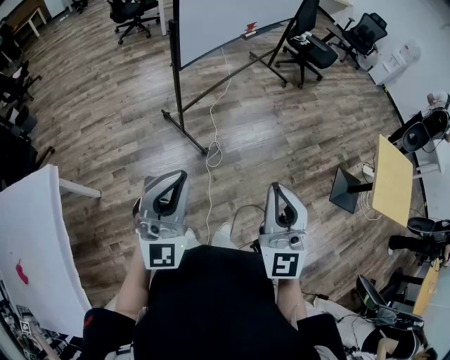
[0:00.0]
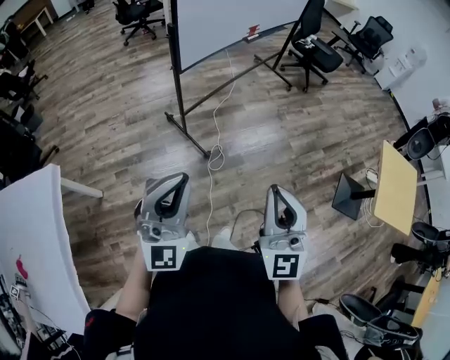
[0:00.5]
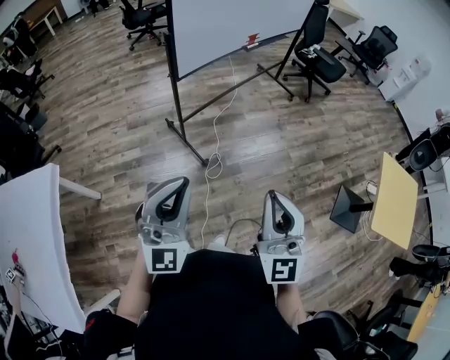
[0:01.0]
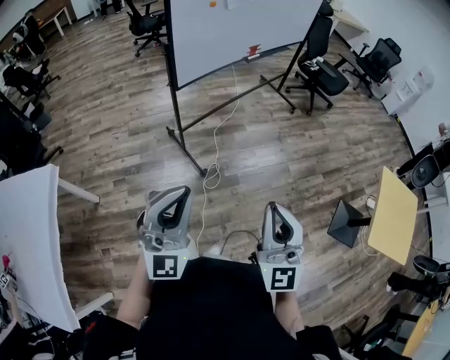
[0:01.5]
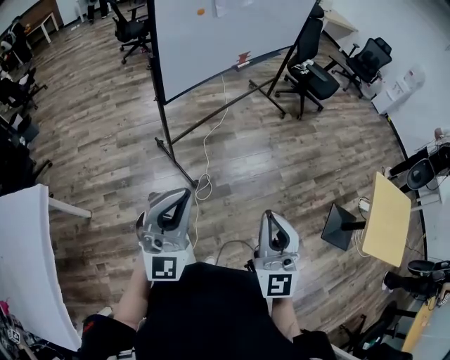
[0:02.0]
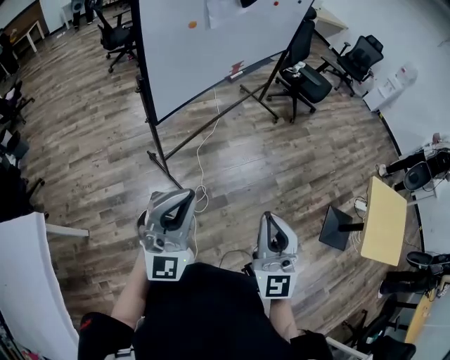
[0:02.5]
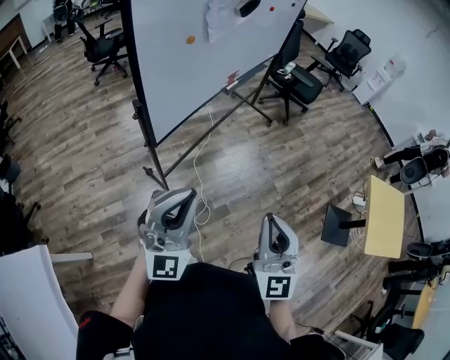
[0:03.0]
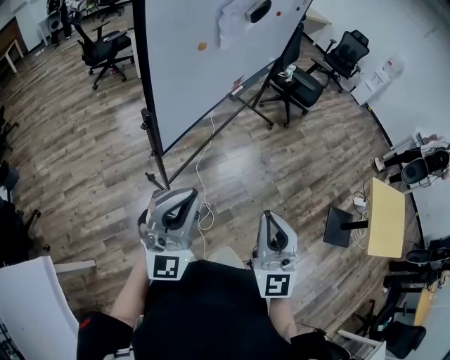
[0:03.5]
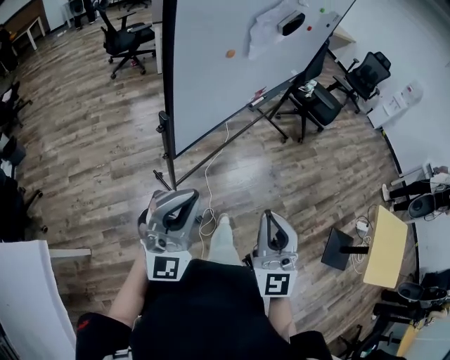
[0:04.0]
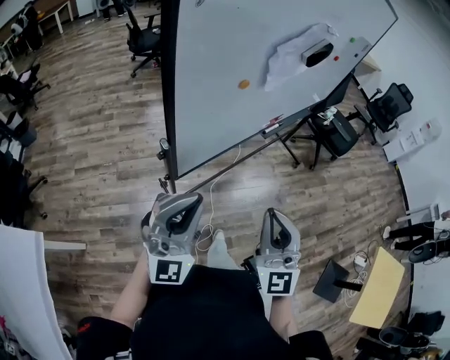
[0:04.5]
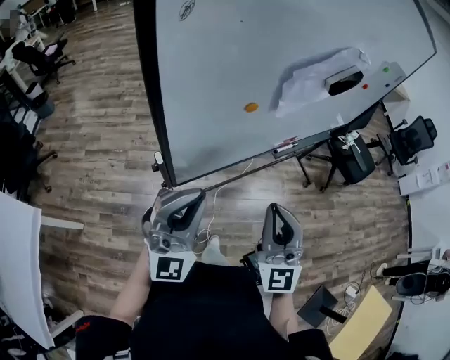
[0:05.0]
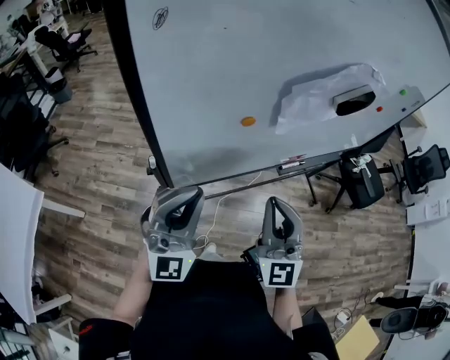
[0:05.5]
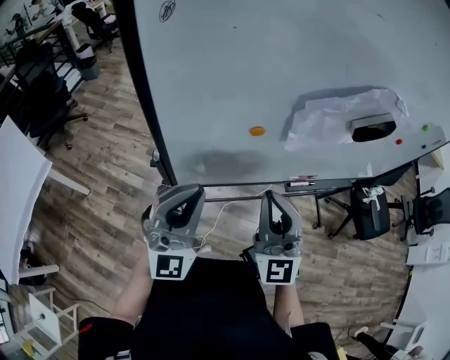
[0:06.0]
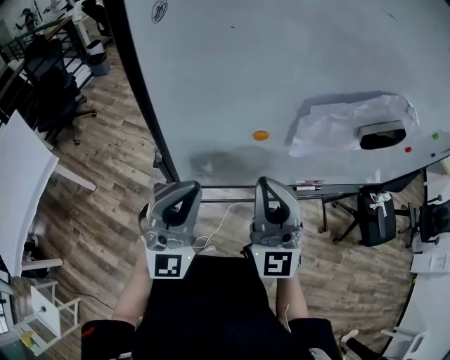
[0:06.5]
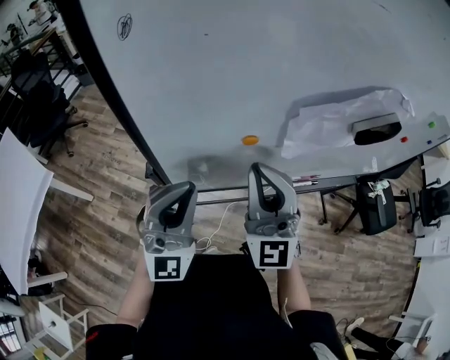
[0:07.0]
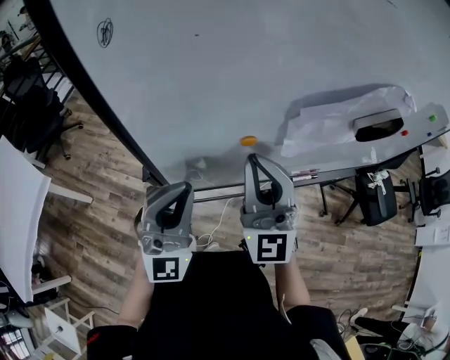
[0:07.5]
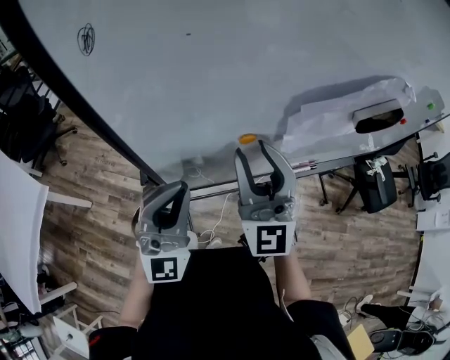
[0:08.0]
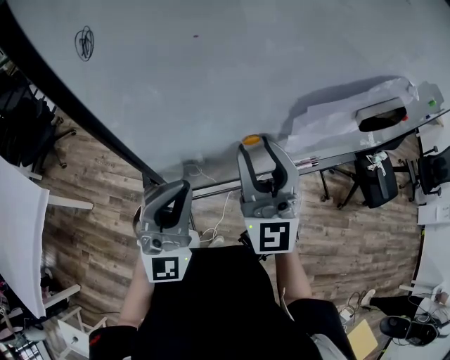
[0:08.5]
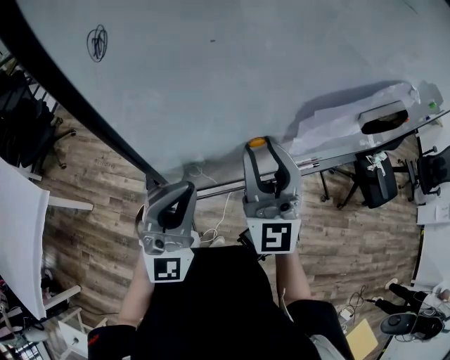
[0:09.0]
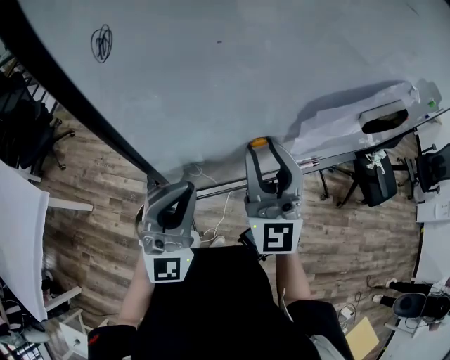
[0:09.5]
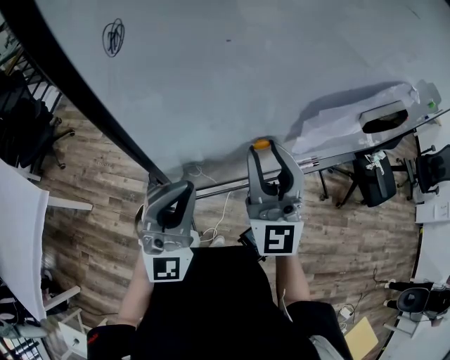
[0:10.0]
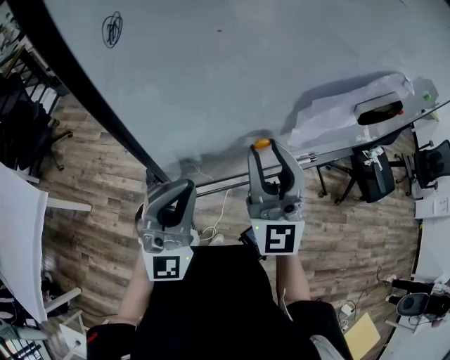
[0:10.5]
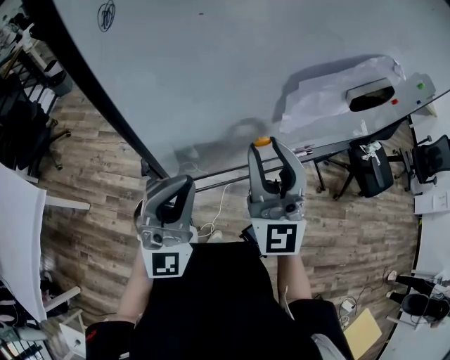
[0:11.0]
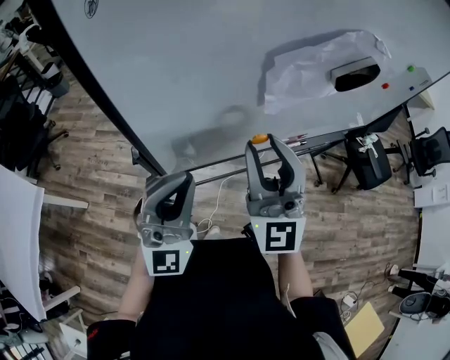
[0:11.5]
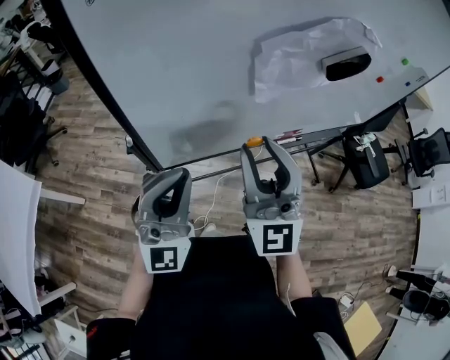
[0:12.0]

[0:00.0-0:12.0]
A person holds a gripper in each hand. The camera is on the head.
0:00.0 to 0:02.0: The two grippers go approximately 15 cm to the right and forward.
0:02.0 to 0:04.0: Both grippers move forward and to the left, approximately 30 cm.
0:04.0 to 0:06.0: The left gripper shifts by about 25 cm, and turns by about 40 degrees, while the right gripper ends up some 35 cm from where it was, and turns by some 40 degrees.
0:06.0 to 0:08.0: The left gripper ends up approximately 5 cm from where it was. Meanwhile the right gripper is displaced forward by approximately 10 cm, and opens.
0:08.0 to 0:10.0: The grippers stay close to where they were, moving slightly.
0:10.0 to 0:12.0: The two grippers go roughly 10 cm backward and to the right.

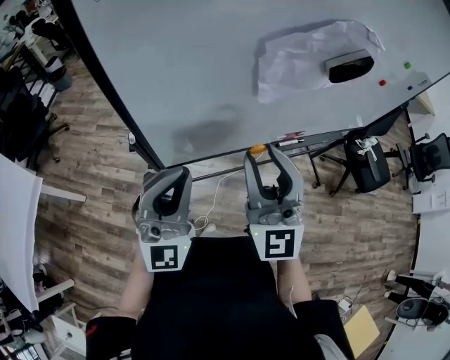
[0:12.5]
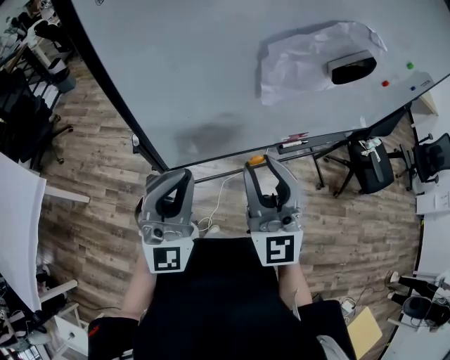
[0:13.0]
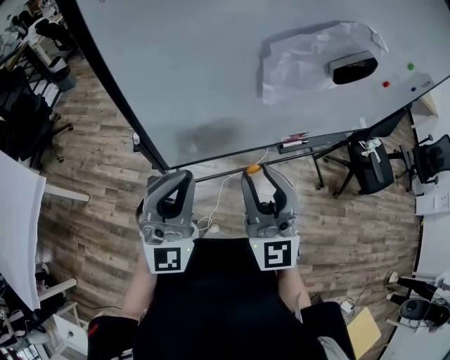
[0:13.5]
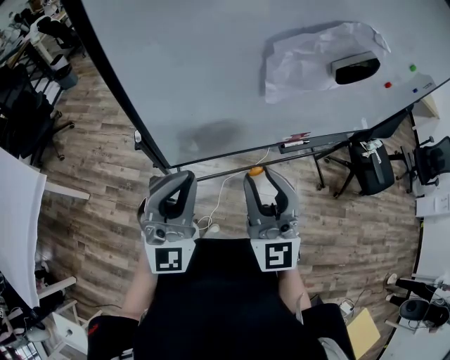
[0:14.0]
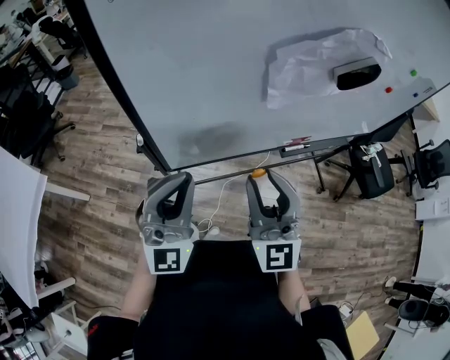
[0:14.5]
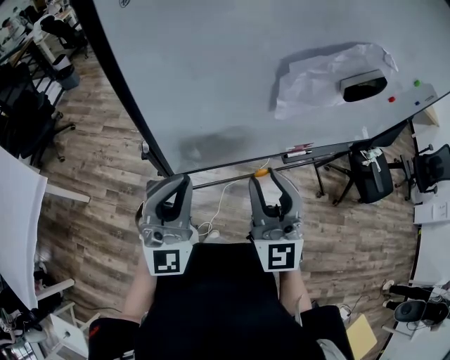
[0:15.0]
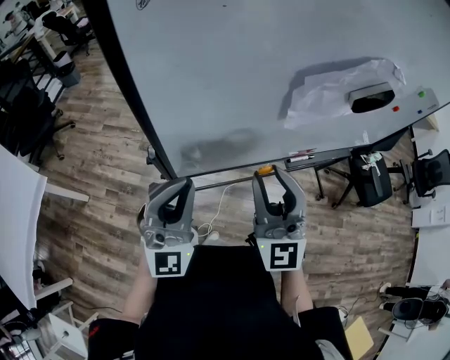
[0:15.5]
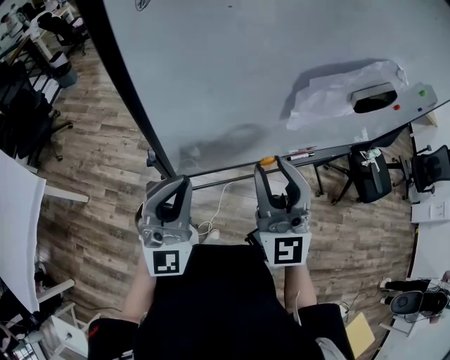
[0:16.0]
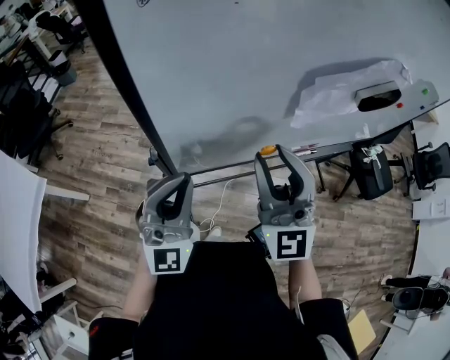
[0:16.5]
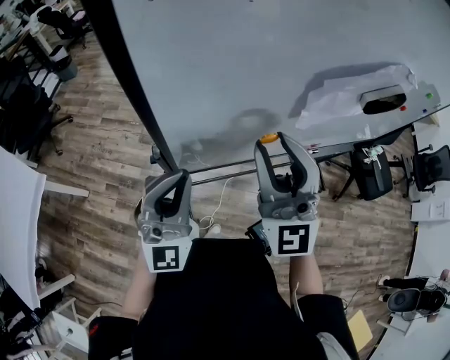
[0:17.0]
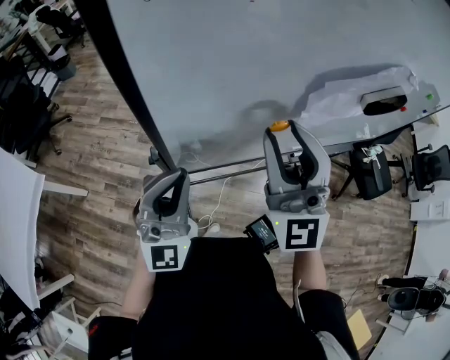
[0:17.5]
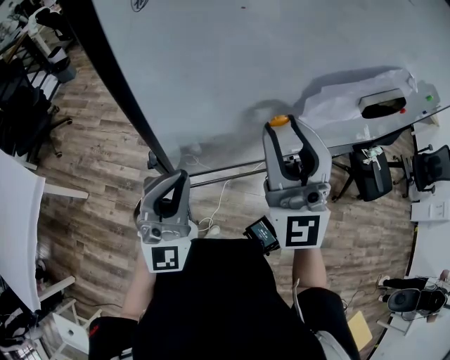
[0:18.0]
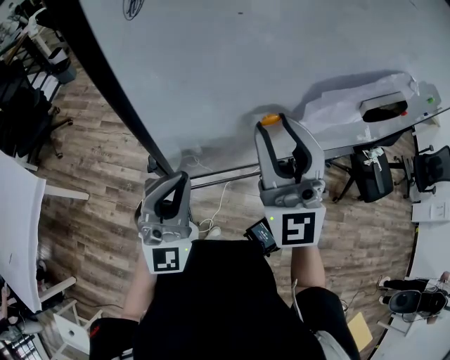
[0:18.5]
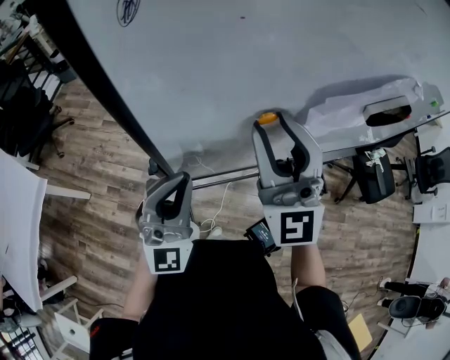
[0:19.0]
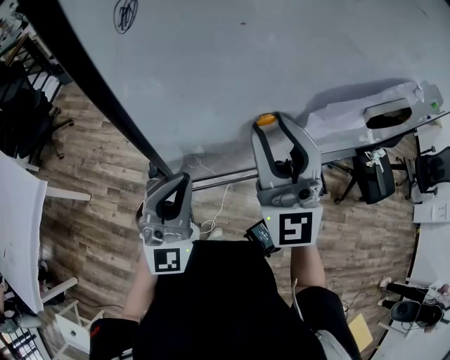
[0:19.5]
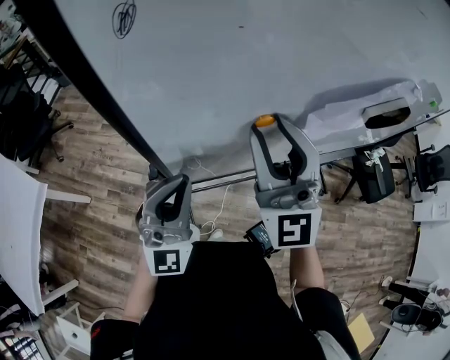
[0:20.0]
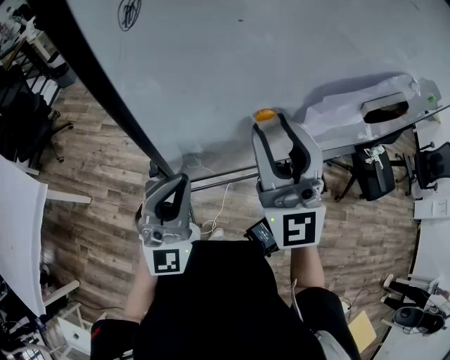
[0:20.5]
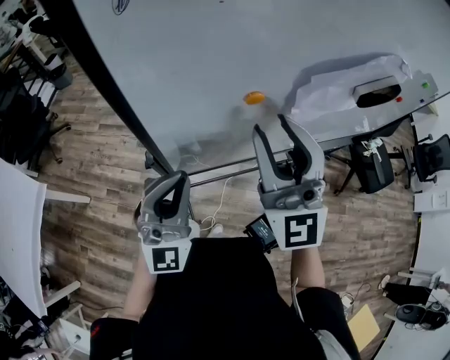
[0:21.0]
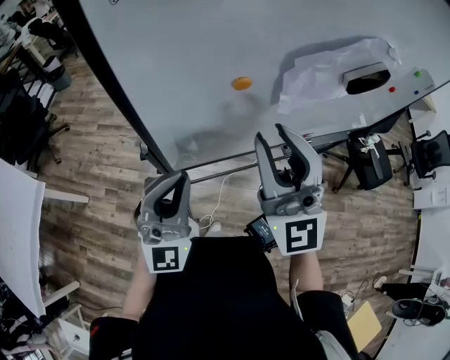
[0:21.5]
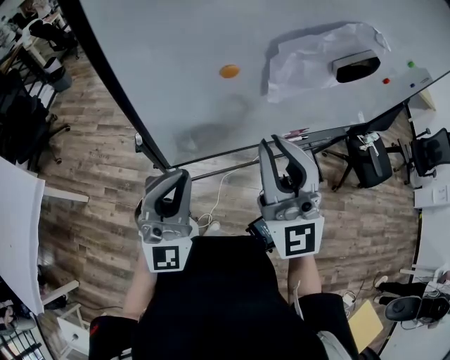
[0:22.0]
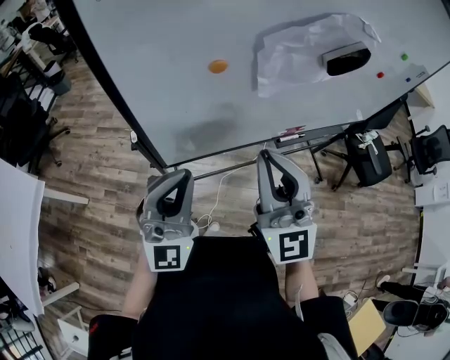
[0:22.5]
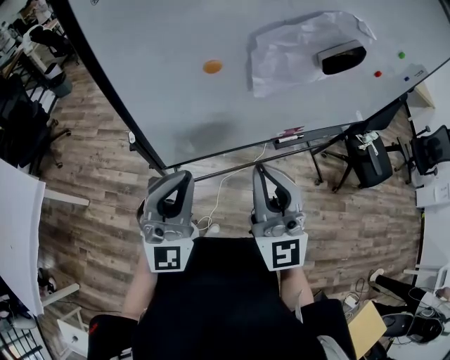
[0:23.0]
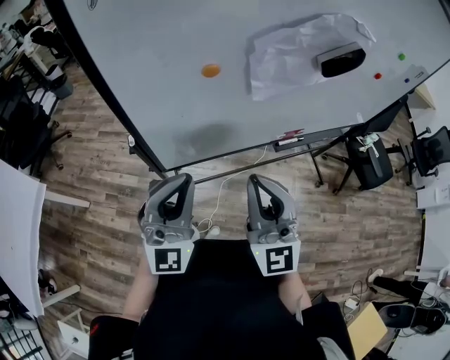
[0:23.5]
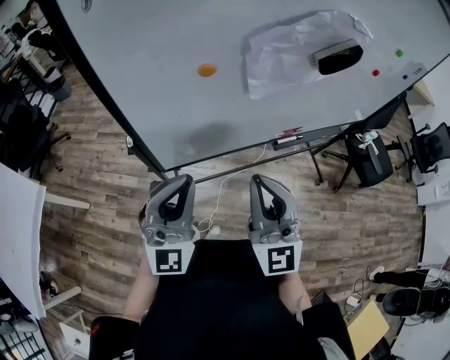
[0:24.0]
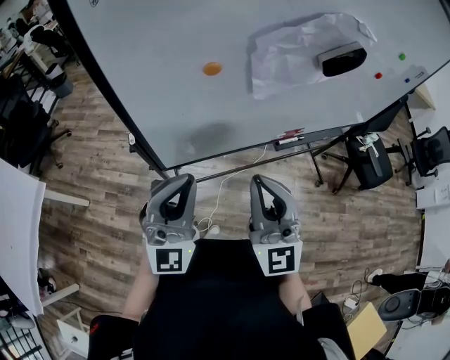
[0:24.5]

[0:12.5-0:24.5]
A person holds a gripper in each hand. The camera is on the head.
0:12.5 to 0:14.5: The right gripper changes place by some 5 cm.
0:14.5 to 0:16.5: The left gripper ends up approximately 5 cm from where it was. Meanwhile the right gripper heads forward and upward, covering about 10 cm.
0:16.5 to 0:18.5: The right gripper travels upward and forward by approximately 5 cm.
0:18.5 to 0:20.5: The grippers stay close to where they were, moving slightly.
0:20.5 to 0:22.5: Both grippers travel together backward and to the right, roughly 10 cm. The right gripper closes up.
0:22.5 to 0:24.5: The right gripper shifts about 5 cm downward.

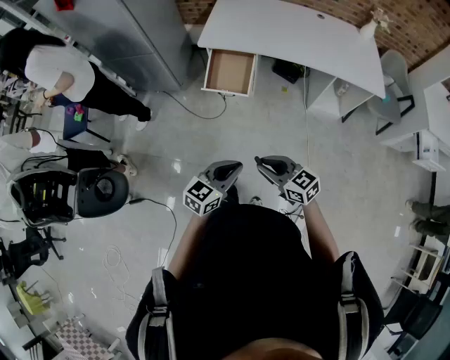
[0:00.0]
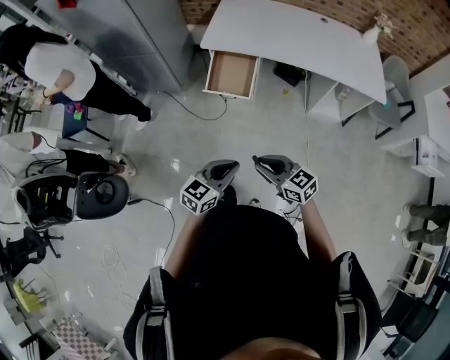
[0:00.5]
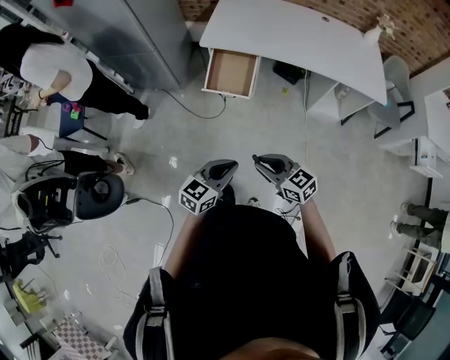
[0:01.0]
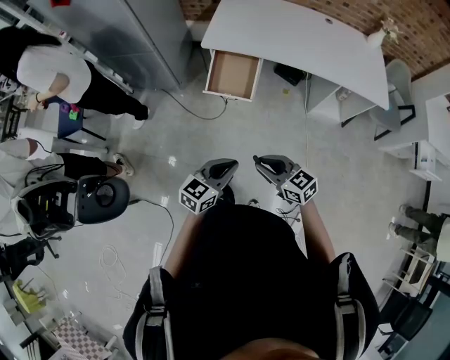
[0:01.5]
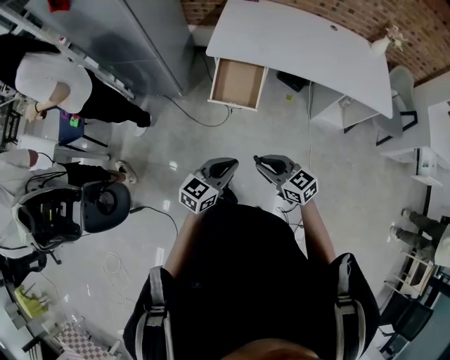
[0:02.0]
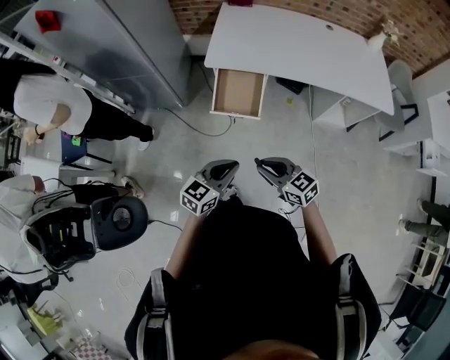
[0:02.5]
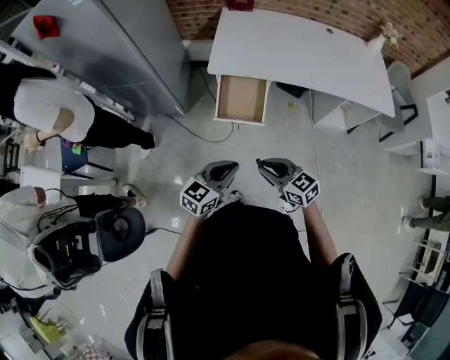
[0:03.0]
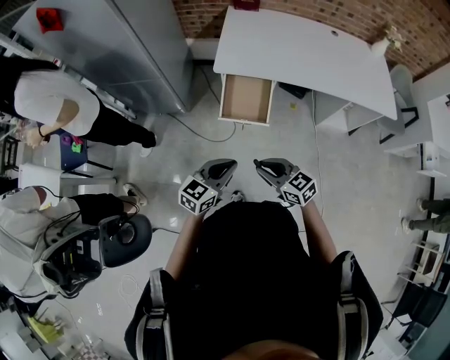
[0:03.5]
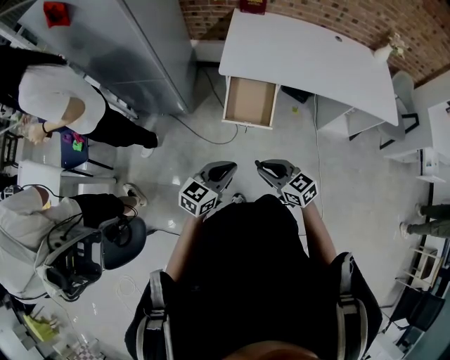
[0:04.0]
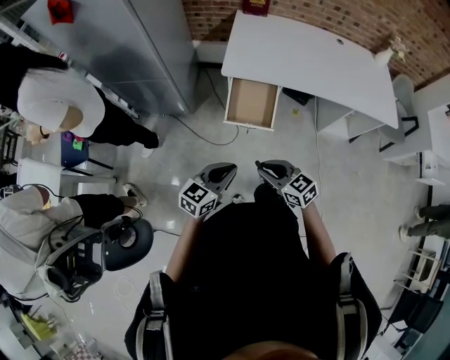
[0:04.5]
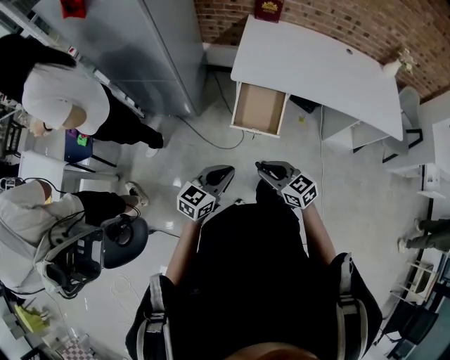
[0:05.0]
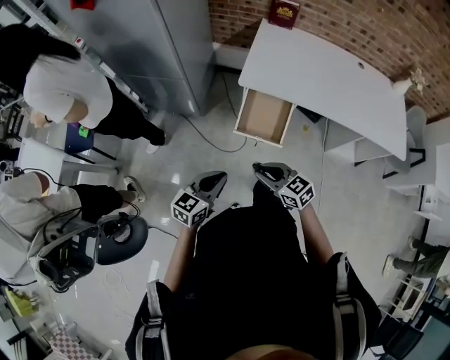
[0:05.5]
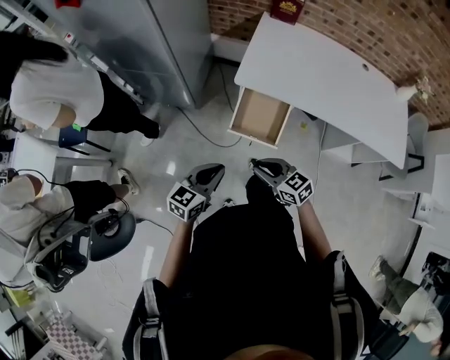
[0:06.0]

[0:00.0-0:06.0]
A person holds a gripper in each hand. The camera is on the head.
0:00.0 to 0:02.0: The two grippers go about 15 cm forward and to the left.
0:02.0 to 0:04.0: The two grippers go some 15 cm to the left and forward.
0:04.0 to 0:06.0: Both grippers move forward, approximately 10 cm.
